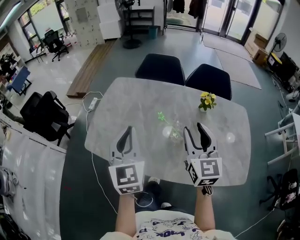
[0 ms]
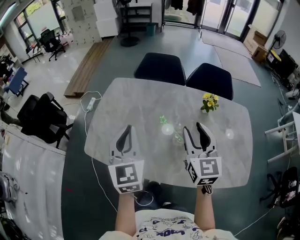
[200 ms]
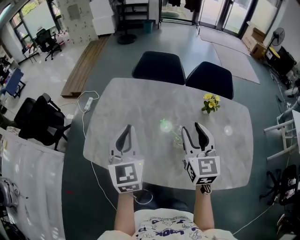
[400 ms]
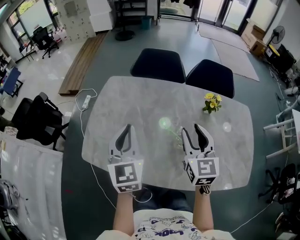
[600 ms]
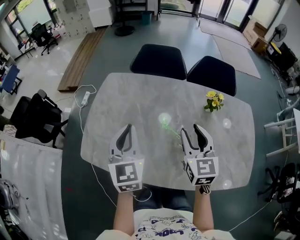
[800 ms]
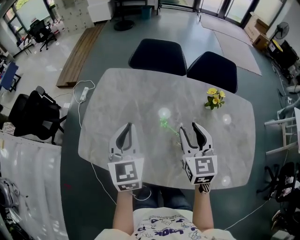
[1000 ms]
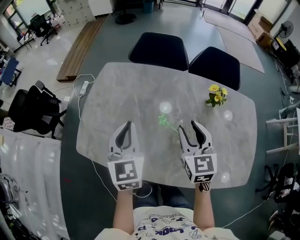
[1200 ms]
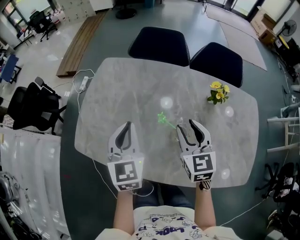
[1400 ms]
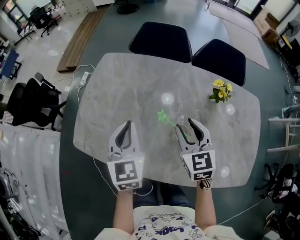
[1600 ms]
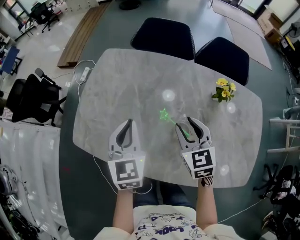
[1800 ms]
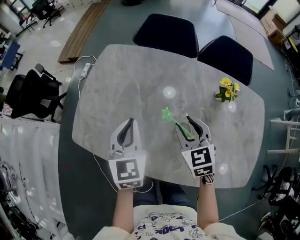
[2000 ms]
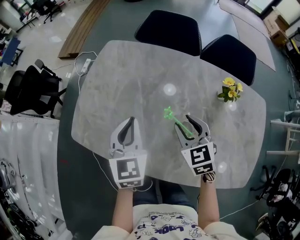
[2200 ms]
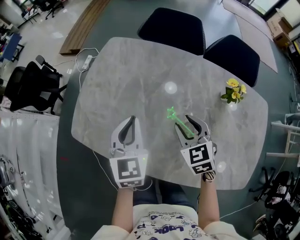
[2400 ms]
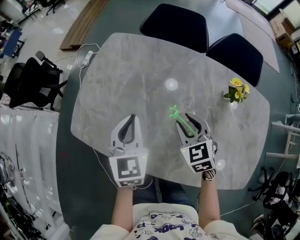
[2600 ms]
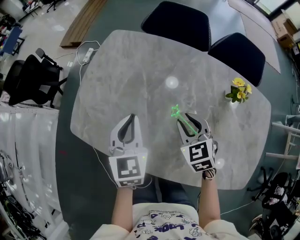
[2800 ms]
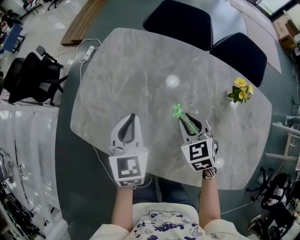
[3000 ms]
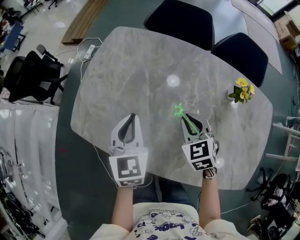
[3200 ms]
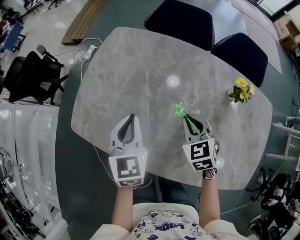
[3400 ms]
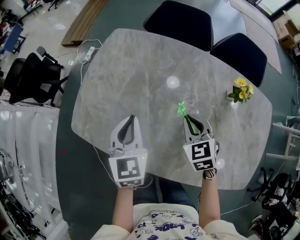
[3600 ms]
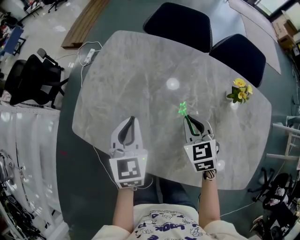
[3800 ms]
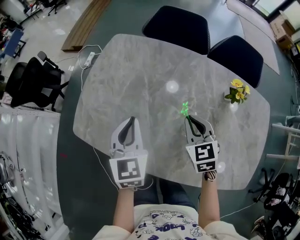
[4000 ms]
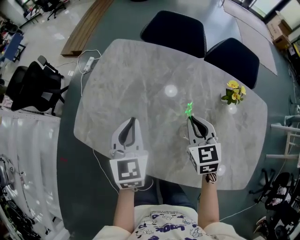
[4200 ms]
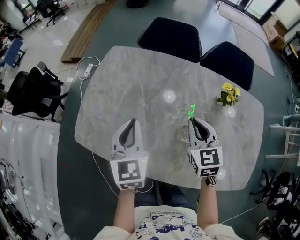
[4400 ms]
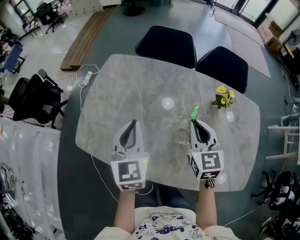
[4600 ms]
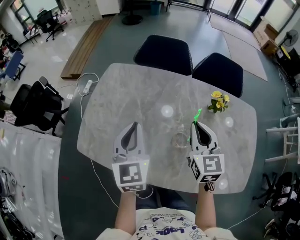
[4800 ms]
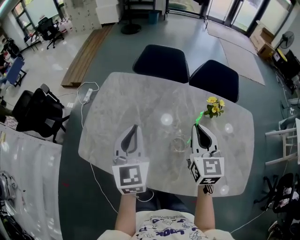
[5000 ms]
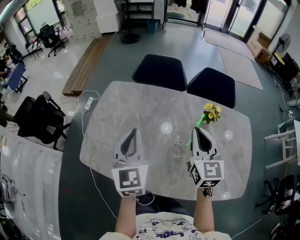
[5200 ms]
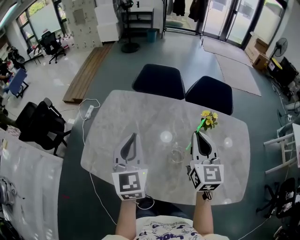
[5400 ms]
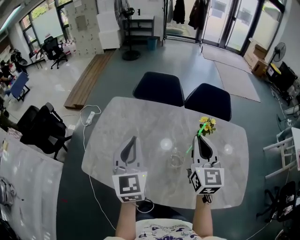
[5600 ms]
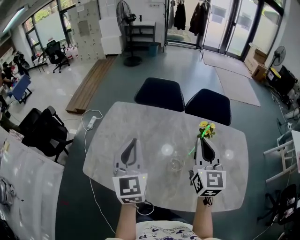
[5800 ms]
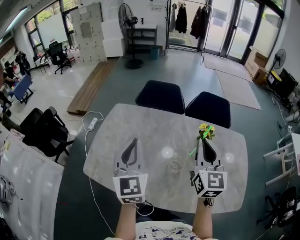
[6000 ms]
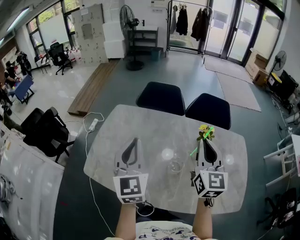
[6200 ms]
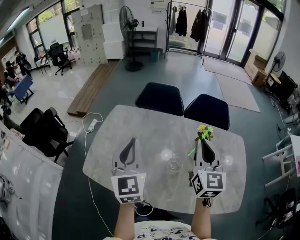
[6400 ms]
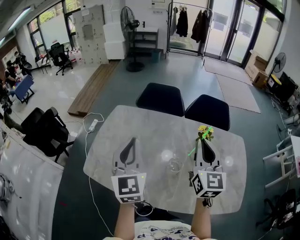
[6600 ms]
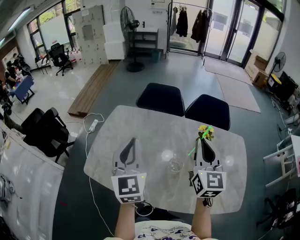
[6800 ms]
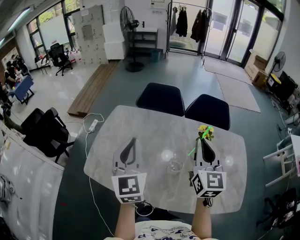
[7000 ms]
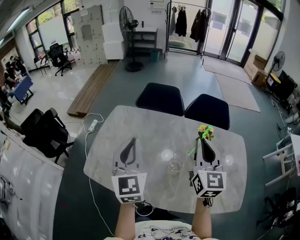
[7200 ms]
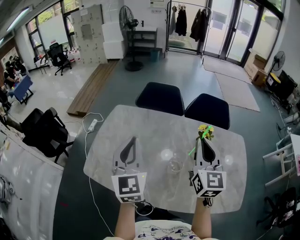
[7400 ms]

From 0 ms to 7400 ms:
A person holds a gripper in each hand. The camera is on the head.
From 0 ms to 1400 ms: The right gripper travels downward and forward by approximately 15 cm; the left gripper goes about 15 cm forward and downward.
From 1400 ms to 3000 ms: The right gripper goes about 10 cm downward, and swivels roughly 30 degrees. Meanwhile the left gripper travels downward by roughly 5 cm.
From 3000 ms to 4400 ms: The right gripper heads upward, covering about 10 cm, and changes its angle by approximately 20 degrees.
From 4400 ms to 6000 ms: Both grippers move upward, about 20 cm. The right gripper swivels some 30 degrees.
From 6000 ms to 7400 ms: The grippers move only a little.

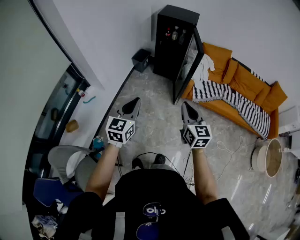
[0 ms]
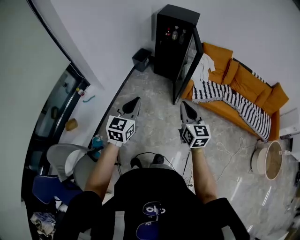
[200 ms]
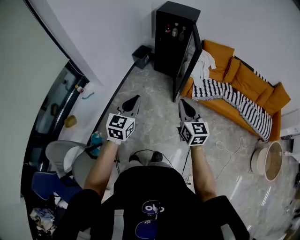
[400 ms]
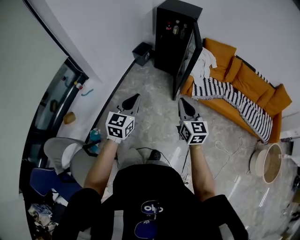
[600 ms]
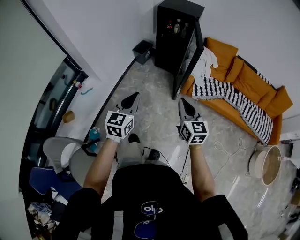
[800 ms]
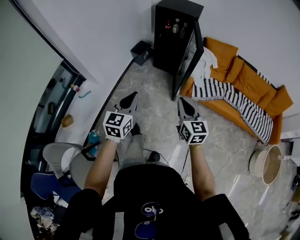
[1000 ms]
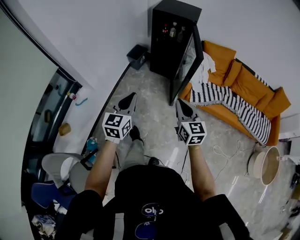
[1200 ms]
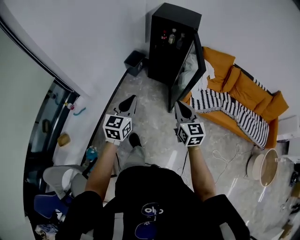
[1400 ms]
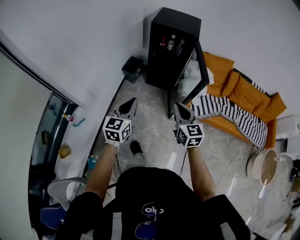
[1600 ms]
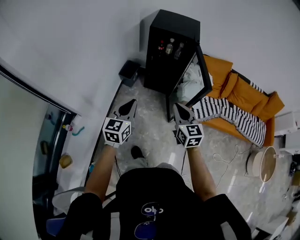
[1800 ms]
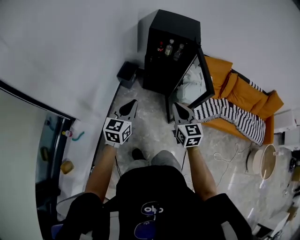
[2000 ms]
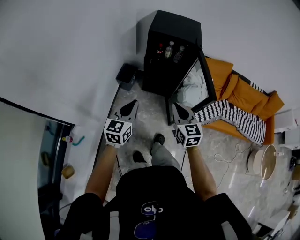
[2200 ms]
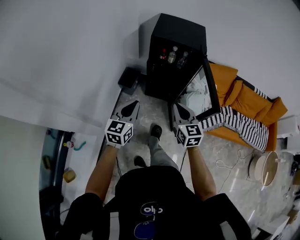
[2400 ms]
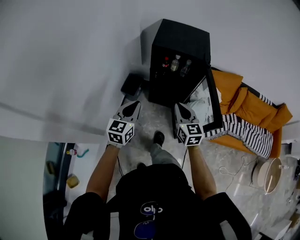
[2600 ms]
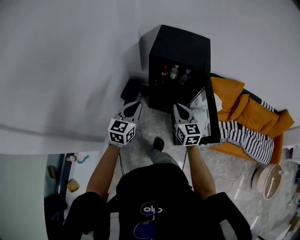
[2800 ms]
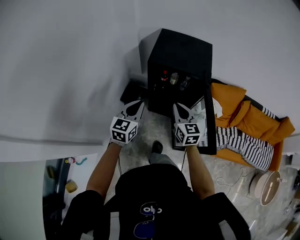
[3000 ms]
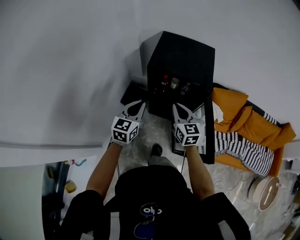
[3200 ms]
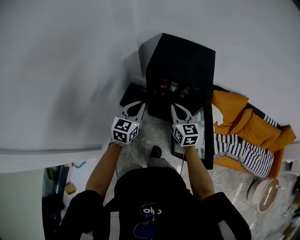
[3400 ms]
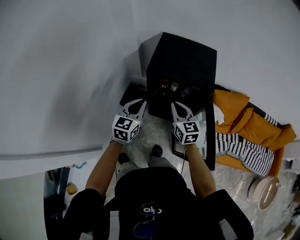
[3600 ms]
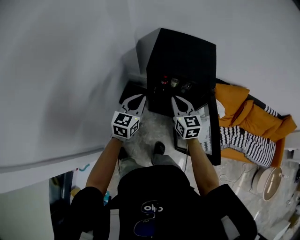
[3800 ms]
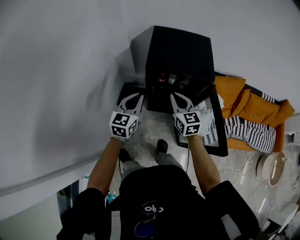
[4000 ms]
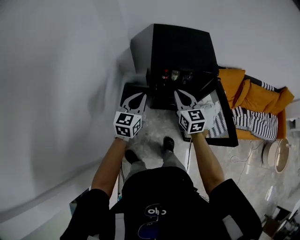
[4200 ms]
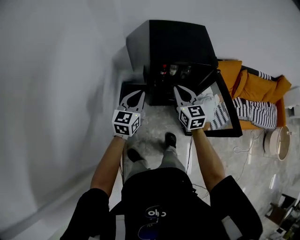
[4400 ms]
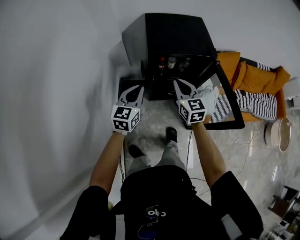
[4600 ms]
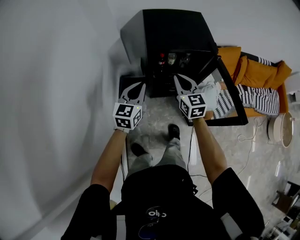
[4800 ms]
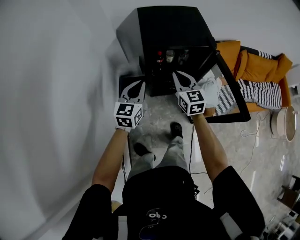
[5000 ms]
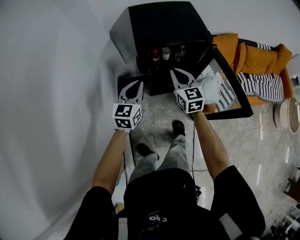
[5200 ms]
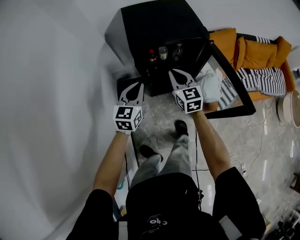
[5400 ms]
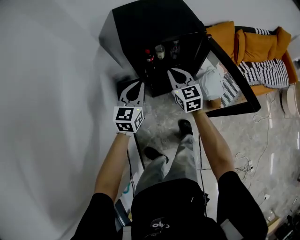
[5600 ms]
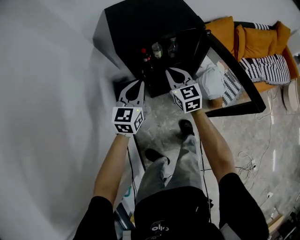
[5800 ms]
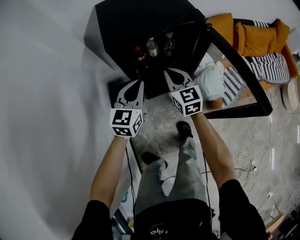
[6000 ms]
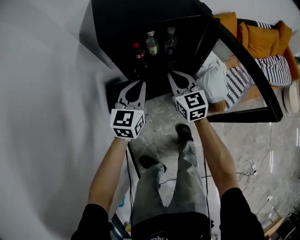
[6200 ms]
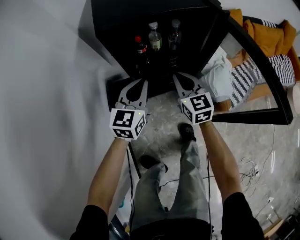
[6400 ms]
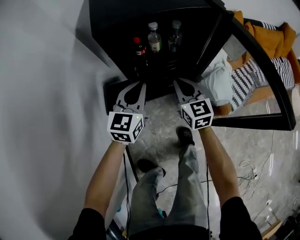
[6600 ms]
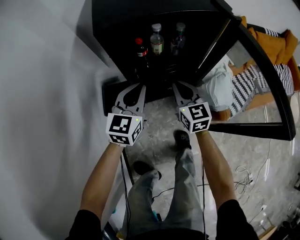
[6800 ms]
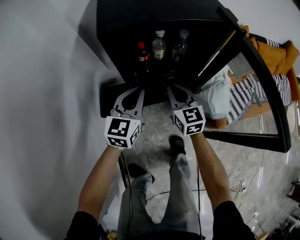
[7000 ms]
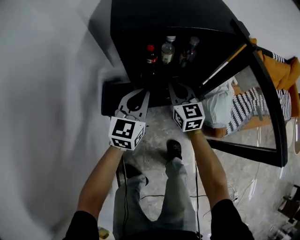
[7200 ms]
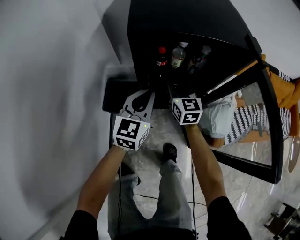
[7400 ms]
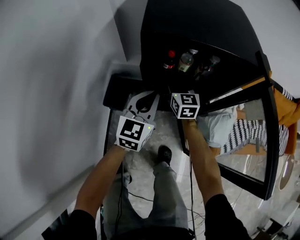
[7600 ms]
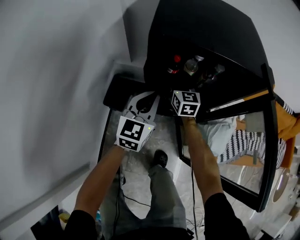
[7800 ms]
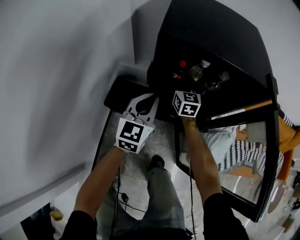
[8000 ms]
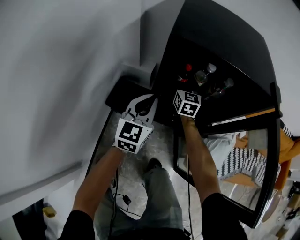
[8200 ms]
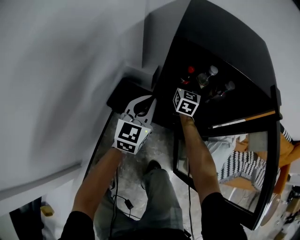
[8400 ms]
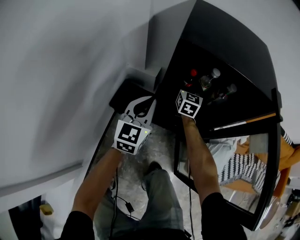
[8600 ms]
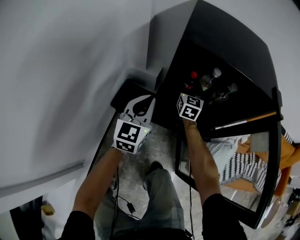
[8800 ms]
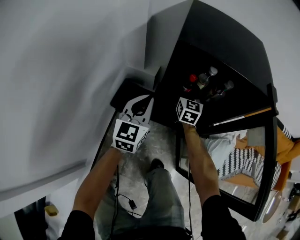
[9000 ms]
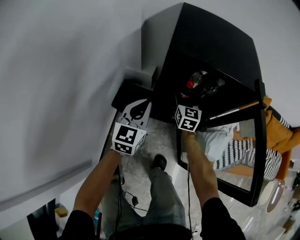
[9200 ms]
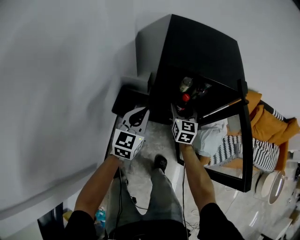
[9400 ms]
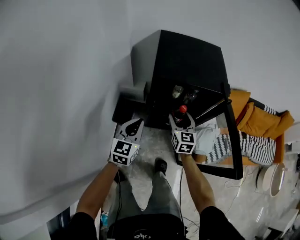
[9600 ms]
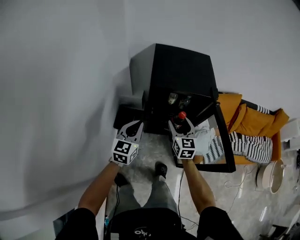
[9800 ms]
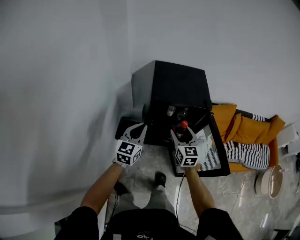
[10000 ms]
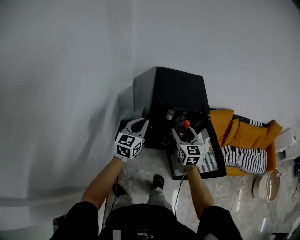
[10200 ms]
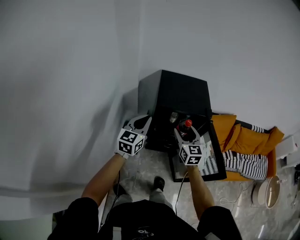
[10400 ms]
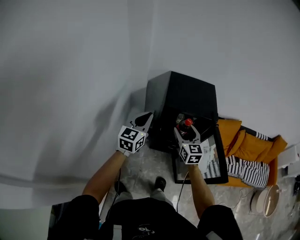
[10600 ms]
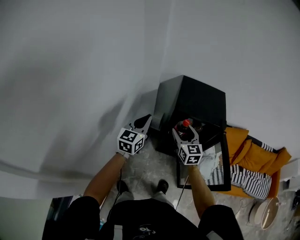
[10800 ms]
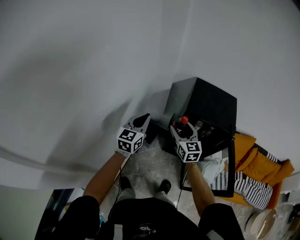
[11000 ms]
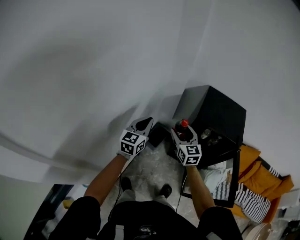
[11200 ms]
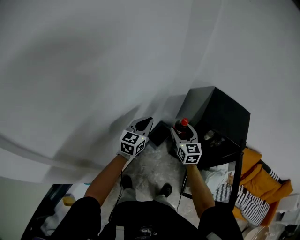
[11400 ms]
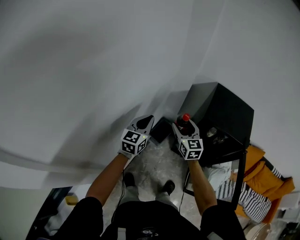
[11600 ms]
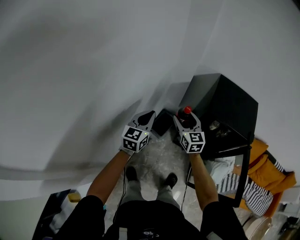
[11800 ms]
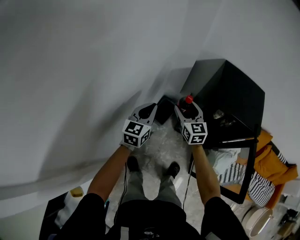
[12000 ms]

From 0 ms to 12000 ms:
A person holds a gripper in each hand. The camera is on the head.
From 0 ms to 1600 ms: Both grippers travel together forward, about 30 cm.
From 1600 ms to 3000 ms: Both grippers are carried forward, some 40 cm.
From 3000 ms to 4400 ms: The right gripper moves to the left and forward, approximately 15 cm. The left gripper is displaced forward and to the left by about 15 cm.
From 4400 ms to 6000 ms: The left gripper is displaced downward, to the right and forward by some 20 cm; the right gripper shifts some 15 cm downward.
From 6000 ms to 7600 ms: The left gripper travels downward by about 10 cm. Meanwhile the right gripper moves downward, forward and to the left, roughly 20 cm, and opens up.
From 7600 ms to 9000 ms: The left gripper moves to the left, about 10 cm.
From 9000 ms to 10400 ms: The right gripper is displaced upward and backward by approximately 40 cm. The left gripper travels upward by about 35 cm.
From 10400 ms to 12000 ms: The right gripper changes place by about 30 cm, and rotates about 30 degrees, while the left gripper changes place by approximately 25 cm, and changes its angle by roughly 20 degrees.

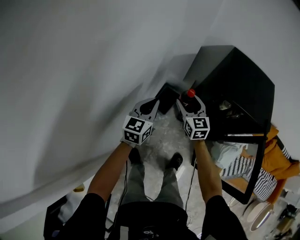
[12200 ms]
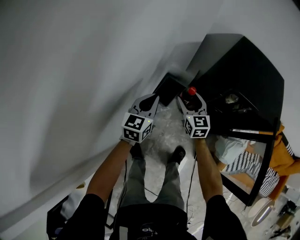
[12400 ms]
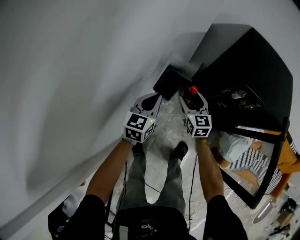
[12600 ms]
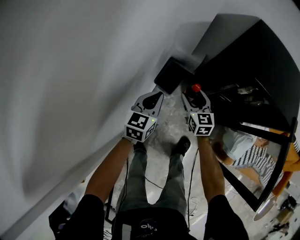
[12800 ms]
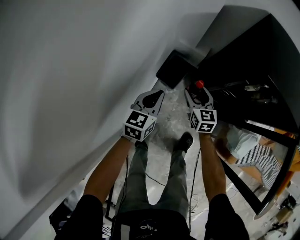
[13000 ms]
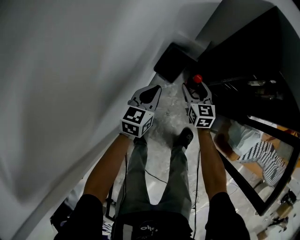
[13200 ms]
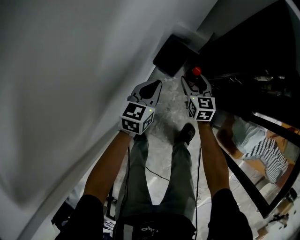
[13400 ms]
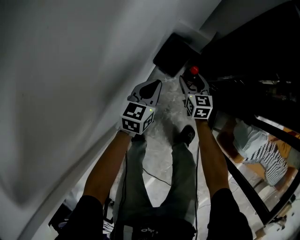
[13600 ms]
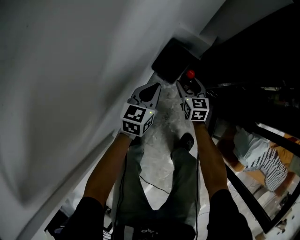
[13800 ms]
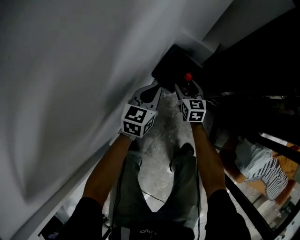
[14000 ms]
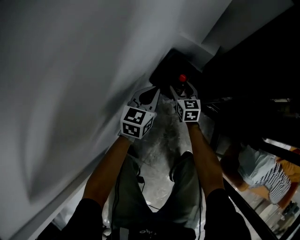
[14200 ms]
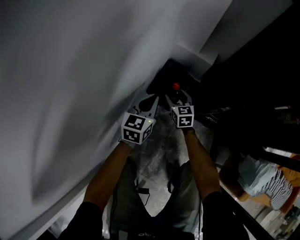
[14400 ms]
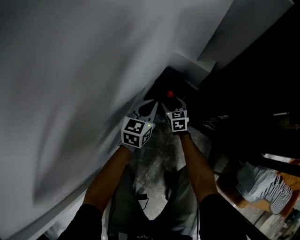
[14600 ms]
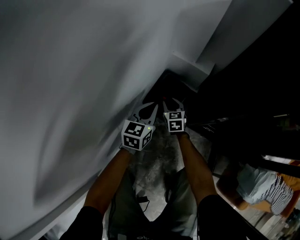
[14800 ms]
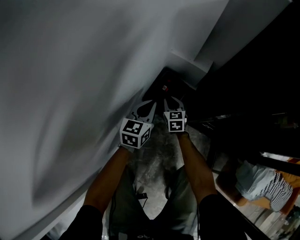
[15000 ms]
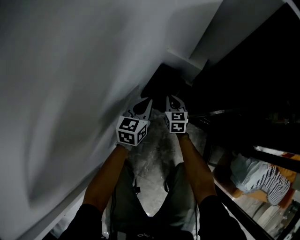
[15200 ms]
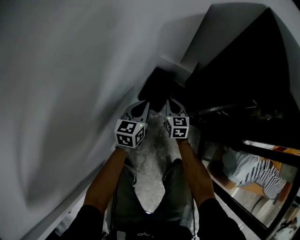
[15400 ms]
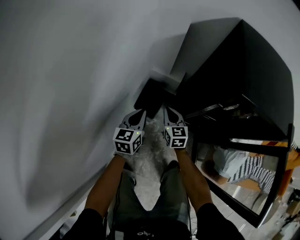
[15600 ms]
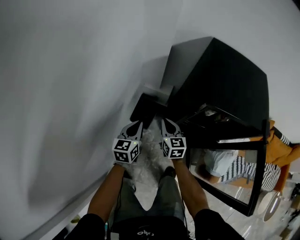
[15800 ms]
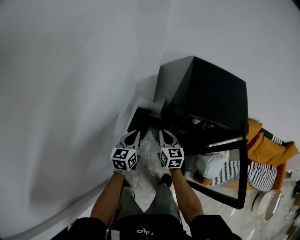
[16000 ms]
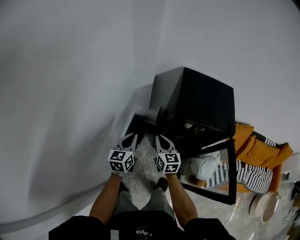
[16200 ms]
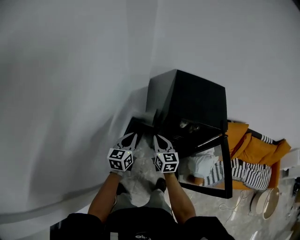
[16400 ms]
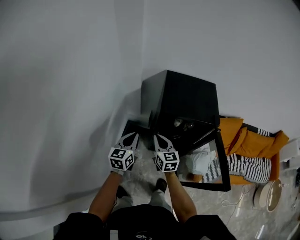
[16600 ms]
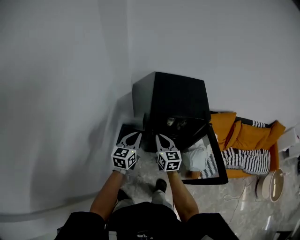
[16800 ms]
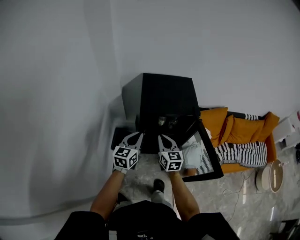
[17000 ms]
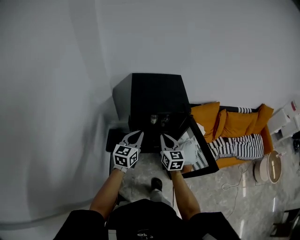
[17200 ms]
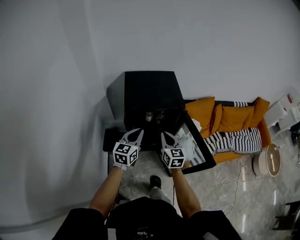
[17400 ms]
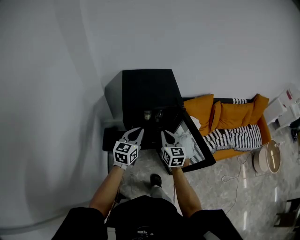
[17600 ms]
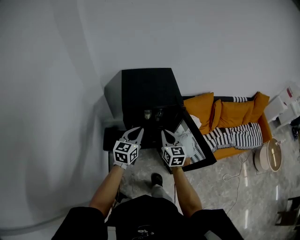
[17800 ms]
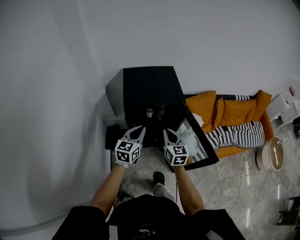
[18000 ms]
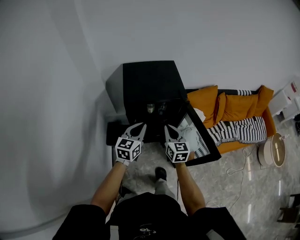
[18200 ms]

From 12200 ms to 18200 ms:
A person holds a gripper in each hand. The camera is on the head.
From 12200 ms to 13800 ms: Both grippers travel together downward, roughly 40 cm.
From 13800 ms to 15200 ms: The right gripper shifts some 15 cm downward and forward, and closes its fingers. Meanwhile the left gripper goes roughly 10 cm forward and downward.
From 15200 ms to 16600 ms: Both grippers move upward, approximately 60 cm. The right gripper rotates about 20 degrees.
From 16600 ms to 18200 ms: The grippers both shift to the right by approximately 20 cm. The right gripper changes its angle by approximately 20 degrees. Meanwhile the left gripper changes its angle by about 20 degrees.
